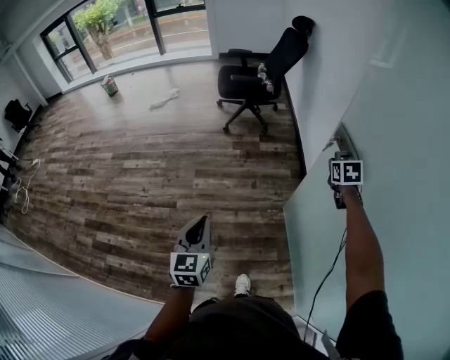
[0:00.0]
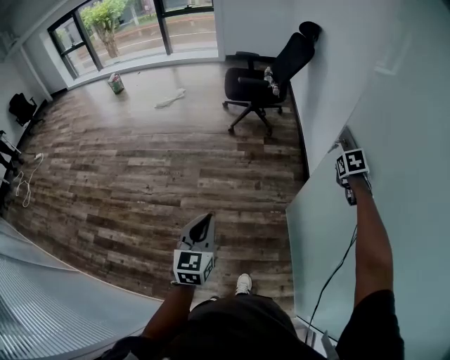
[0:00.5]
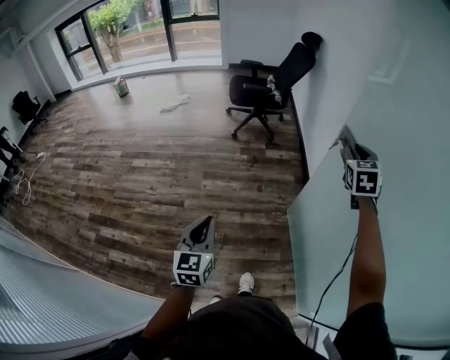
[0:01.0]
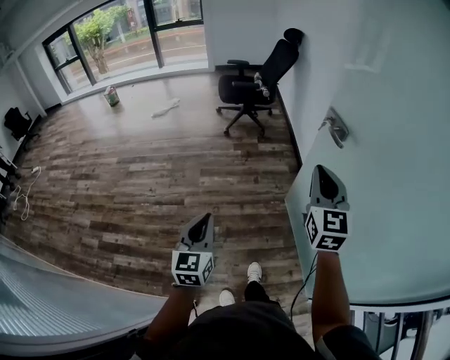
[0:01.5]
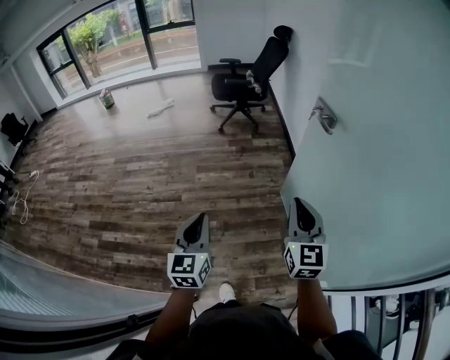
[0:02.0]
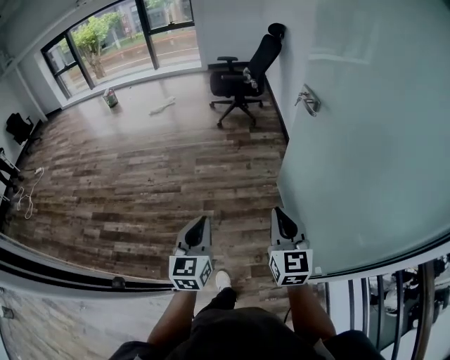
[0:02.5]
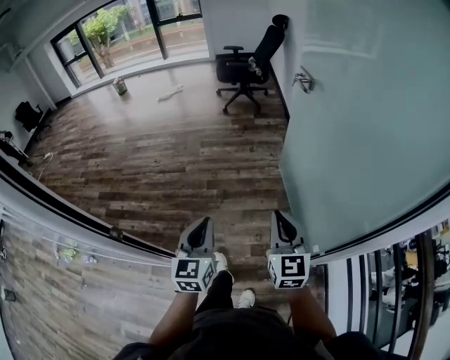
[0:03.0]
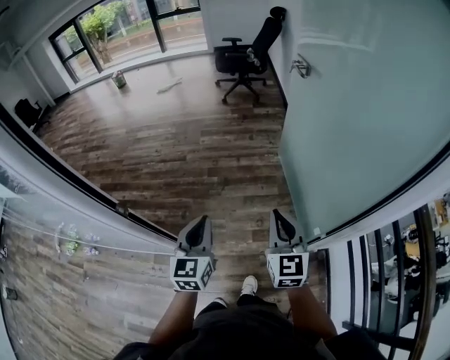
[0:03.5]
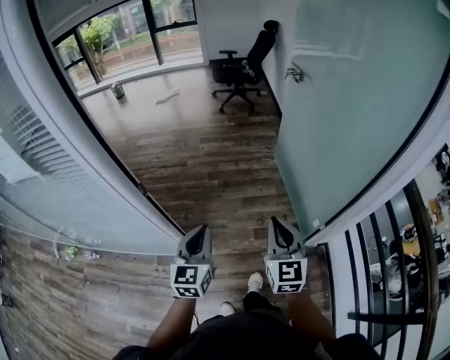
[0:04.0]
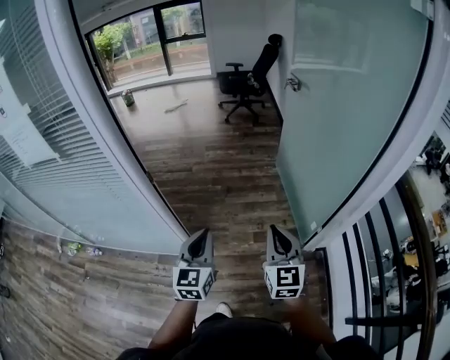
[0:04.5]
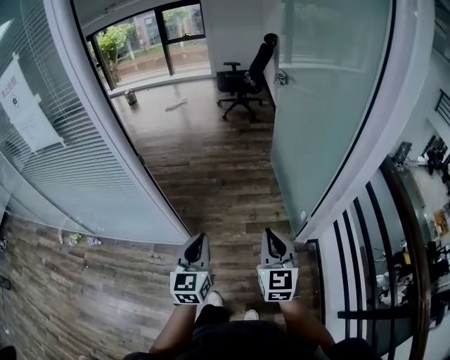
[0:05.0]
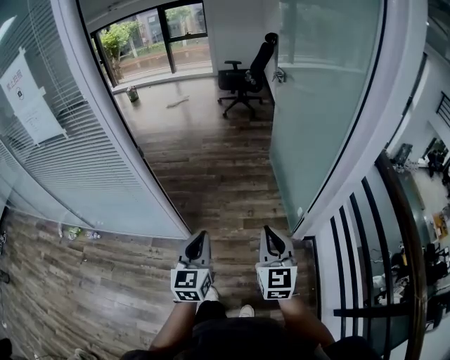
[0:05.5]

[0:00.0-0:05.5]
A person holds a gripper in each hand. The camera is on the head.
0:00.0 to 0:02.0: The left gripper goes roughly 25 cm backward. The right gripper heads backward, covering about 50 cm, points its fingers some 40 degrees further upward, and opens and closes again.
0:02.0 to 0:03.5: Both grippers travel together backward, roughly 40 cm.
0:03.5 to 0:05.5: The grippers both shift backward by about 40 cm.

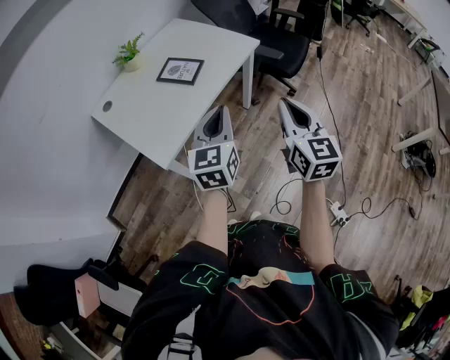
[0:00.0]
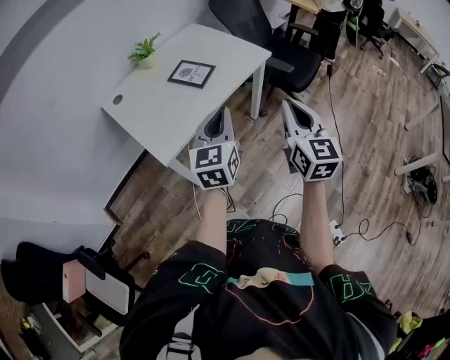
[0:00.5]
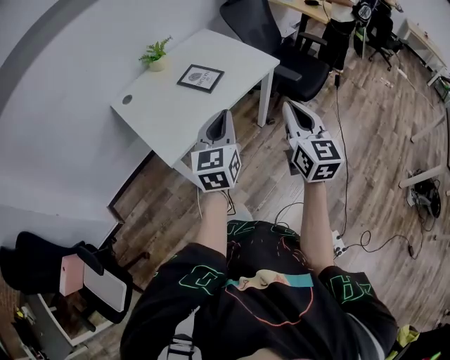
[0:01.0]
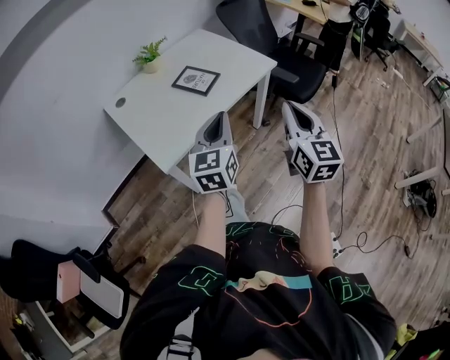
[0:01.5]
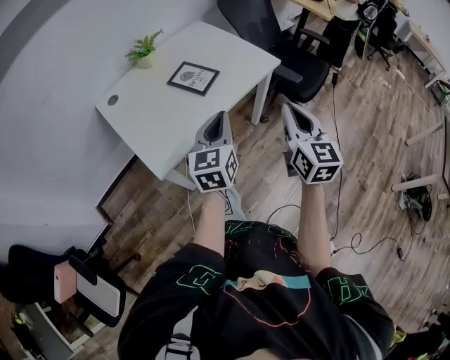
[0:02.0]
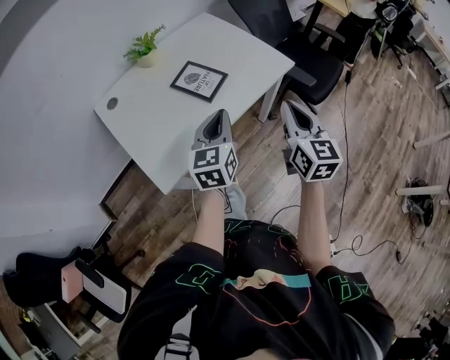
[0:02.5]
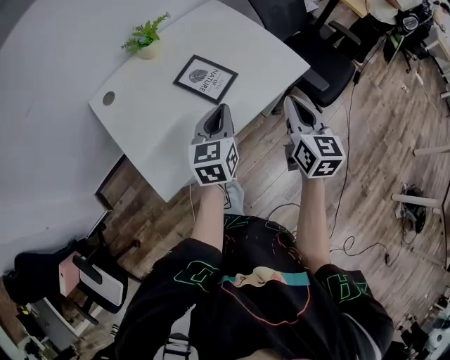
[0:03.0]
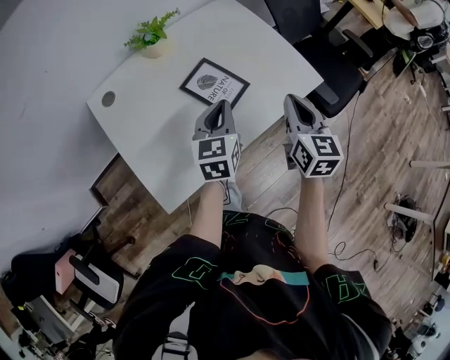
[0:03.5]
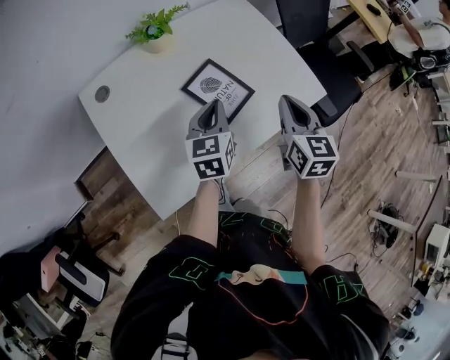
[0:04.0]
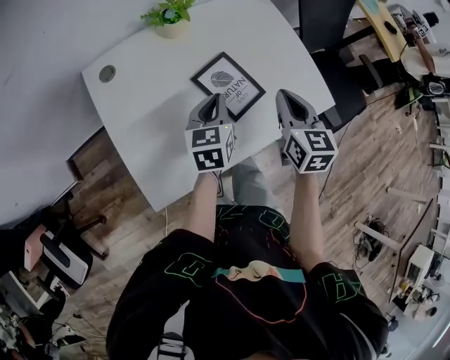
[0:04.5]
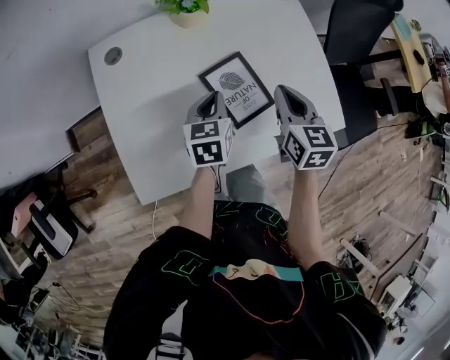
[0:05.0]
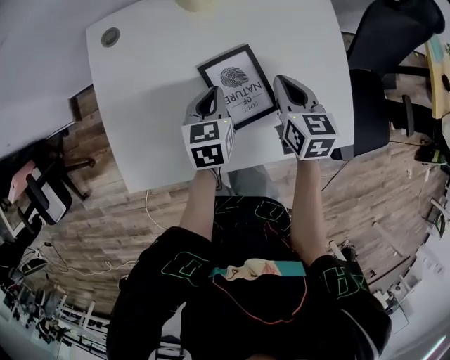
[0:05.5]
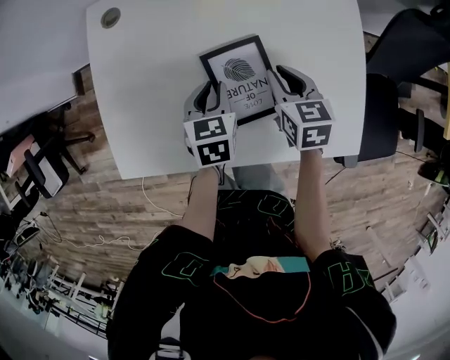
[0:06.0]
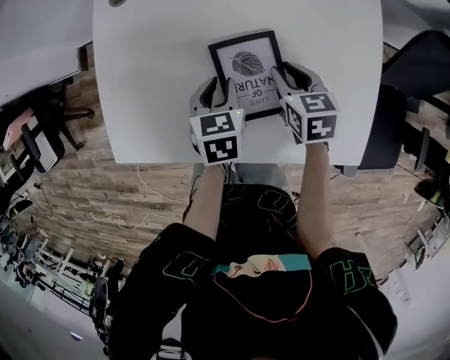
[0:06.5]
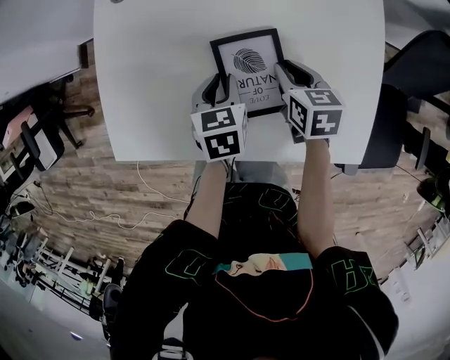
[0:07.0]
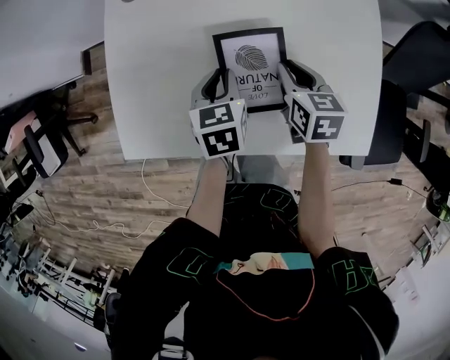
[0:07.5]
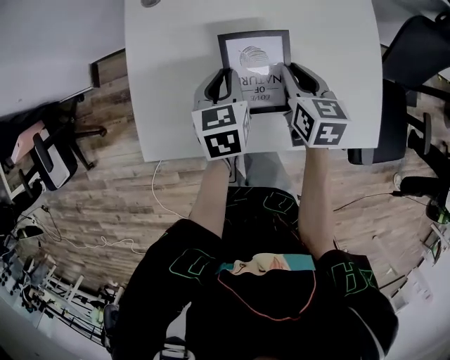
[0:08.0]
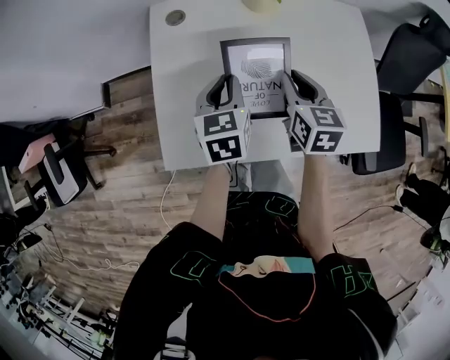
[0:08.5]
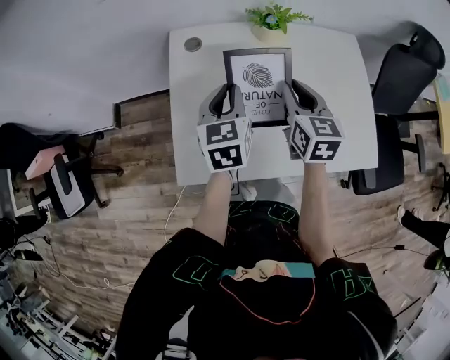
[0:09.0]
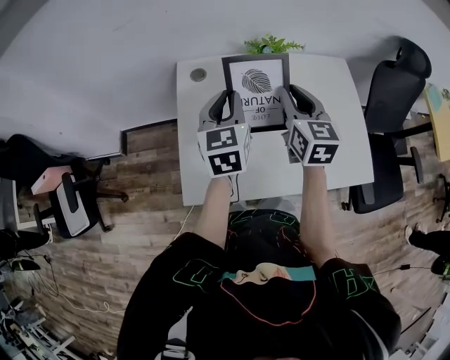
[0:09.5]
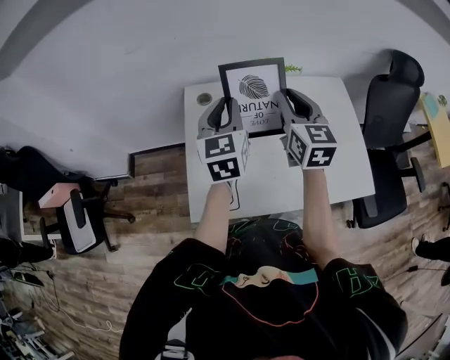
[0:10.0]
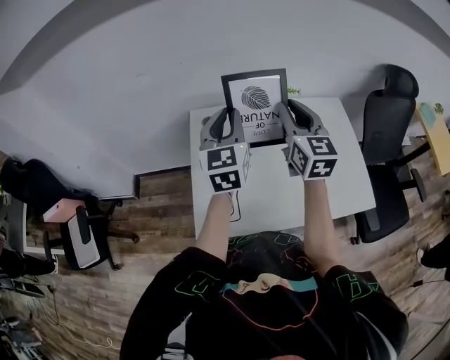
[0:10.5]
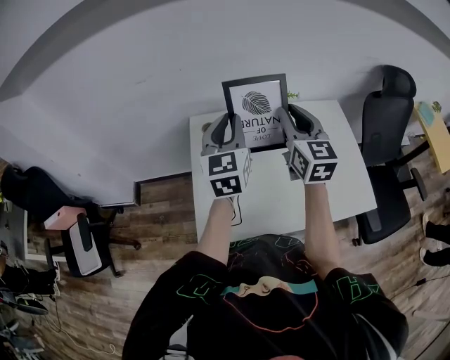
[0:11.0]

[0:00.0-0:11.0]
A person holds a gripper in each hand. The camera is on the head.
0:00.0 to 0:02.0: Both grippers travel together forward, roughly 10 cm.
0:02.0 to 0:03.5: Both grippers travel together forward, some 25 cm.
0:03.5 to 0:05.5: The right gripper shifts by roughly 25 cm, and changes its angle by about 40 degrees. Meanwhile the left gripper shifts some 15 cm downward, and turns by approximately 40 degrees.
0:05.5 to 0:07.5: The right gripper goes approximately 5 cm downward.
0:07.5 to 0:09.0: Both grippers move upward and to the left, about 20 cm. The right gripper rotates some 30 degrees. Meanwhile the left gripper swivels about 20 degrees.
0:09.0 to 0:11.0: The two grippers go approximately 15 cm upward. The right gripper rotates some 20 degrees. The left gripper changes its angle by roughly 20 degrees.

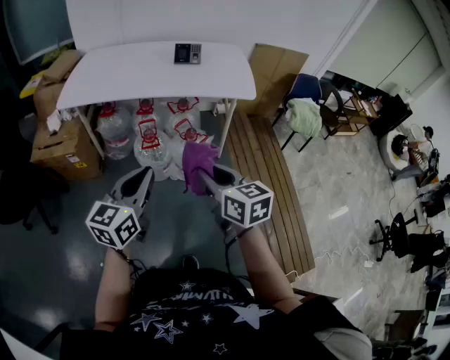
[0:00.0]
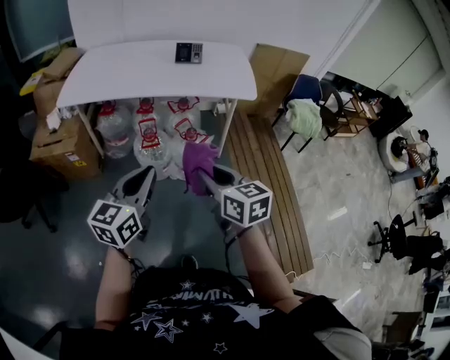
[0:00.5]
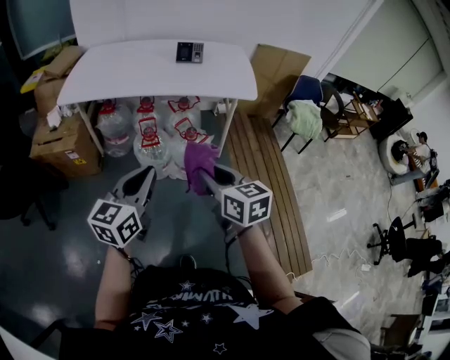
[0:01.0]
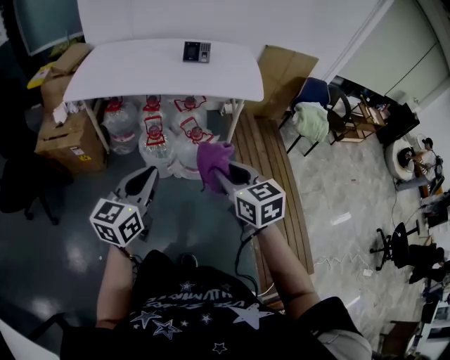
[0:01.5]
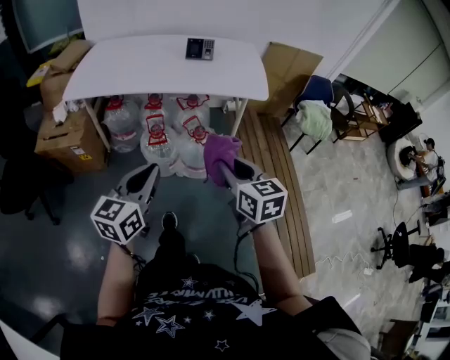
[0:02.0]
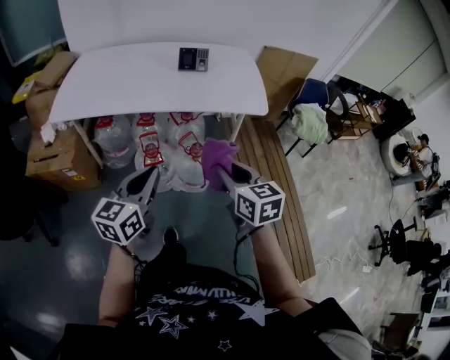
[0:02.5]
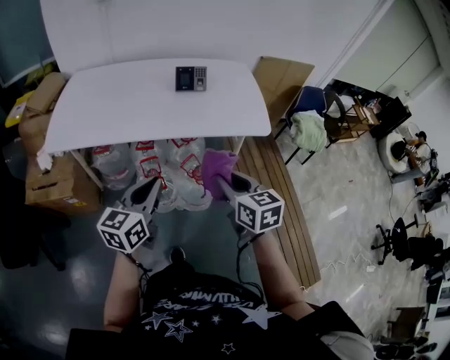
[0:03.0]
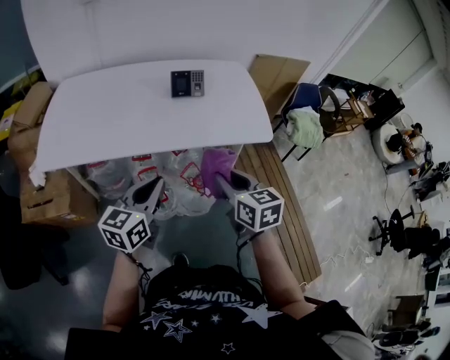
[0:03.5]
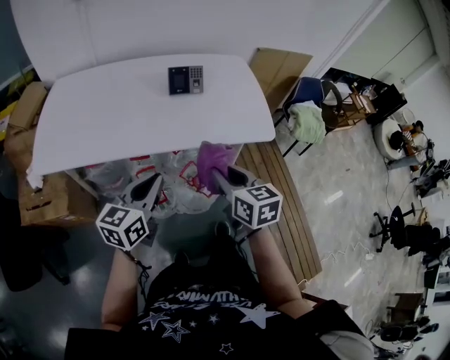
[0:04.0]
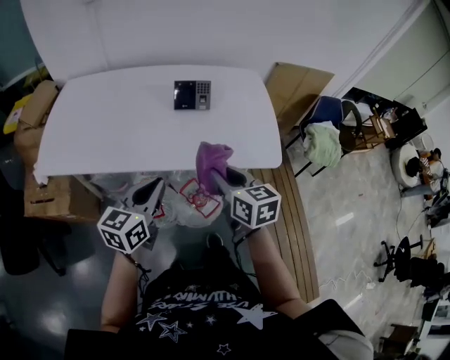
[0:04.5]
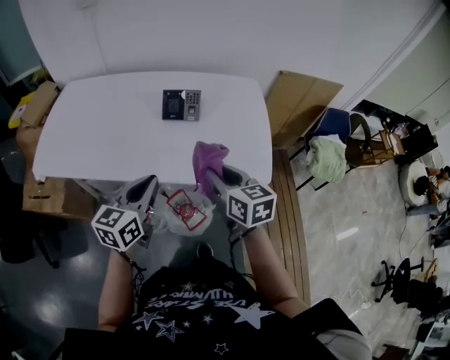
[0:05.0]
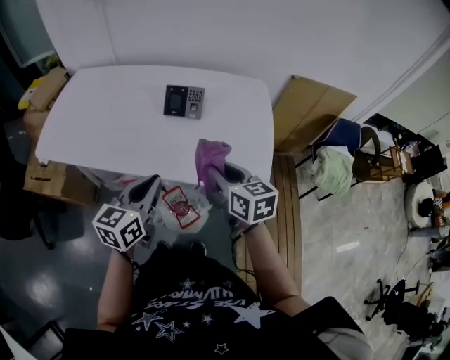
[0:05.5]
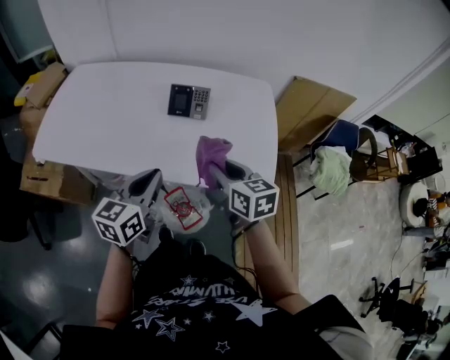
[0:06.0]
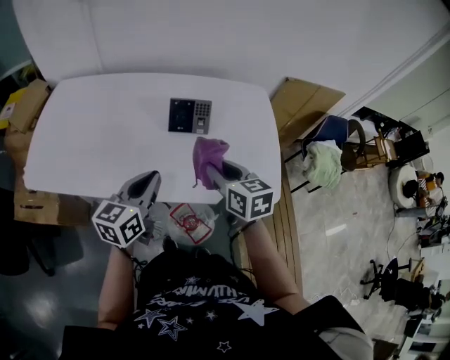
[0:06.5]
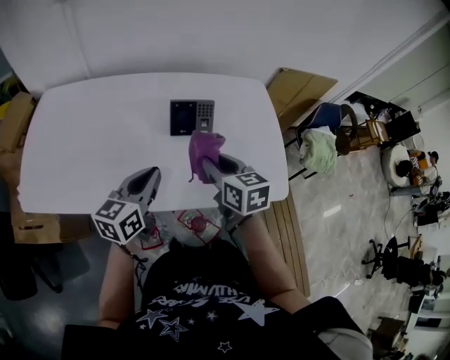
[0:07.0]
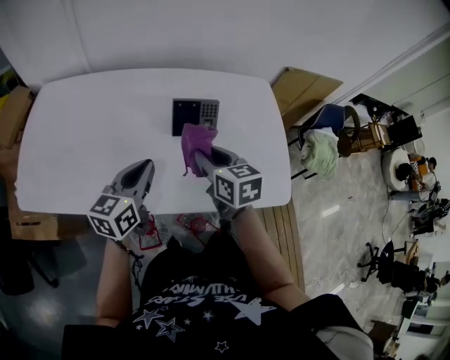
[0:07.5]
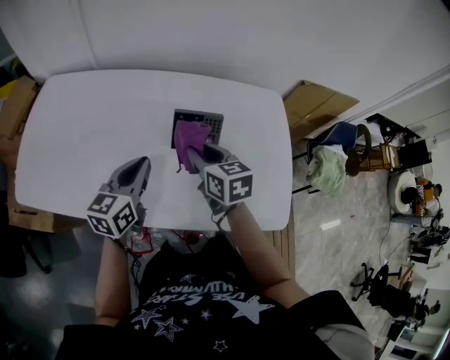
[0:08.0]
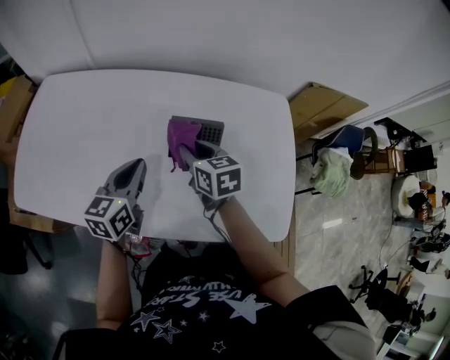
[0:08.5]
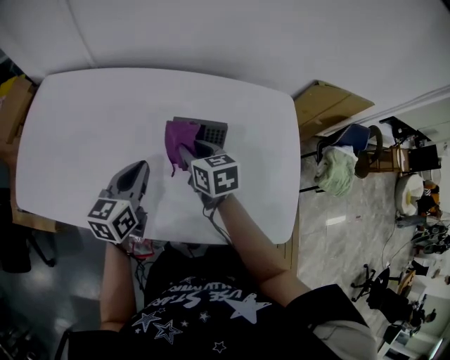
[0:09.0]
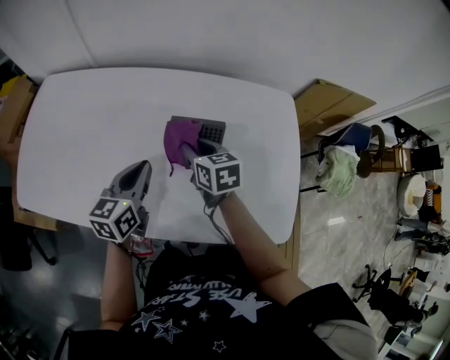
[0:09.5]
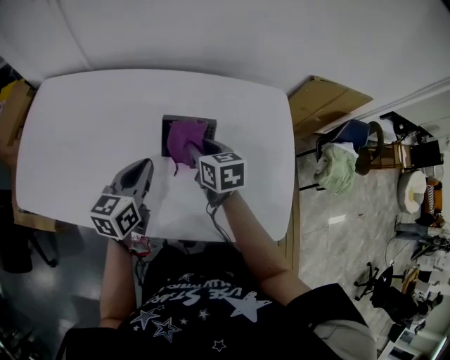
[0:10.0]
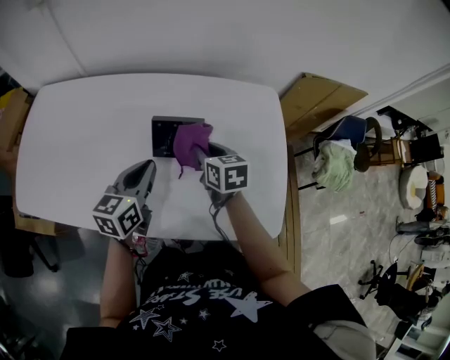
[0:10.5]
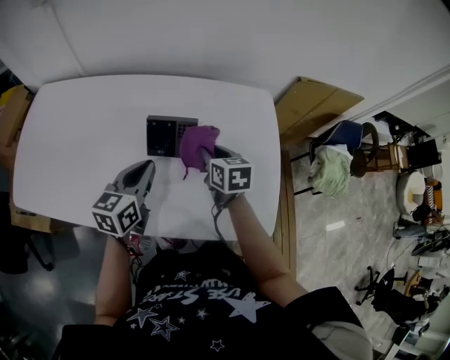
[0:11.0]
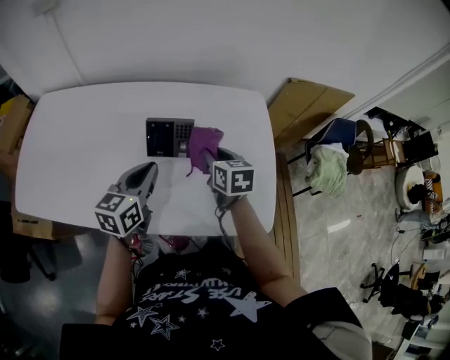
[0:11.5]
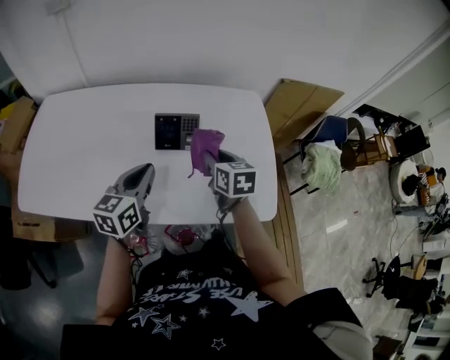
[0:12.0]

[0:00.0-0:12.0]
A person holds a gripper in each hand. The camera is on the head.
0:00.0 to 0:02.0: The right gripper shifts by some 5 cm.
0:02.0 to 0:04.0: The two grippers go about 30 cm forward.
0:04.0 to 0:06.0: The right gripper is displaced forward and to the right by some 20 cm. Meanwhile the left gripper shifts about 15 cm to the right and forward.
0:06.0 to 0:08.0: Both grippers travel together forward and to the left, some 25 cm.
0:08.0 to 0:10.0: The right gripper is displaced downward and forward by approximately 10 cm, while the left gripper moves some 5 cm.
0:10.0 to 0:12.0: The left gripper moves backward, about 5 cm. Meanwhile the right gripper goes about 10 cm backward and to the right.
